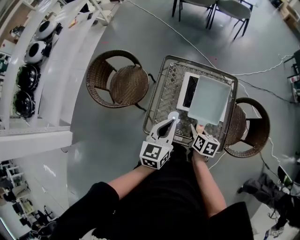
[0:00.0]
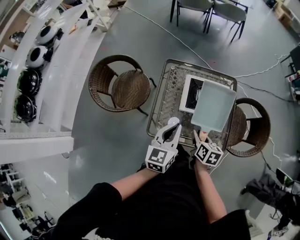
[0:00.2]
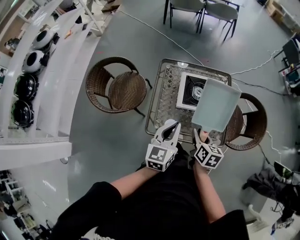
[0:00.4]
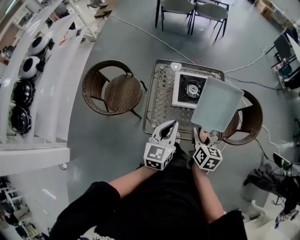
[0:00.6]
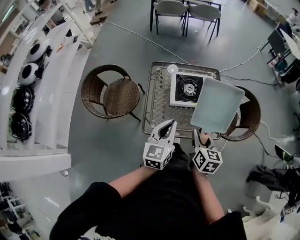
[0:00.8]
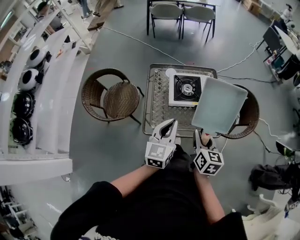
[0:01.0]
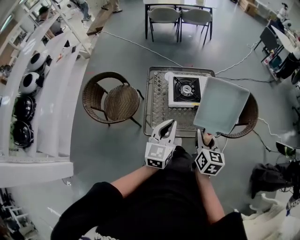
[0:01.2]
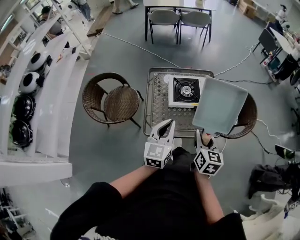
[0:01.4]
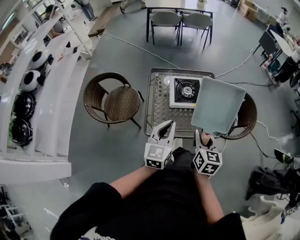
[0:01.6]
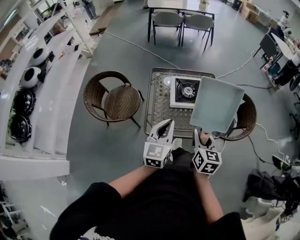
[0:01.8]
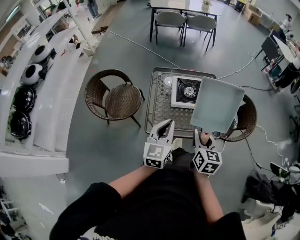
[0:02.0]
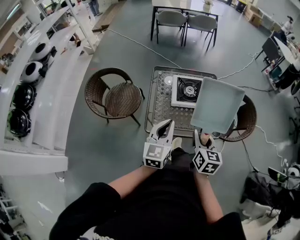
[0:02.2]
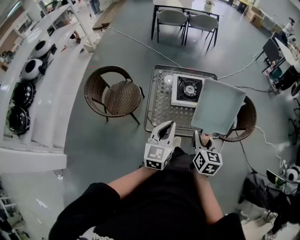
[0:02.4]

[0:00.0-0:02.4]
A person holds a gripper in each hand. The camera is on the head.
0:00.0 to 0:01.2: The left gripper goes roughly 15 cm backward and upward, while the right gripper is displaced upward and backward by some 25 cm, and rotates approximately 30 degrees.
0:01.2 to 0:02.4: There are only small adjustments of the grippers.

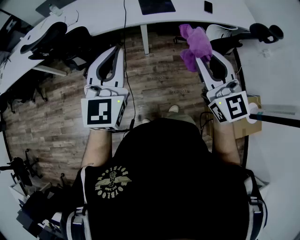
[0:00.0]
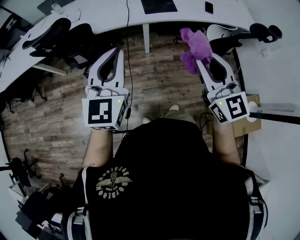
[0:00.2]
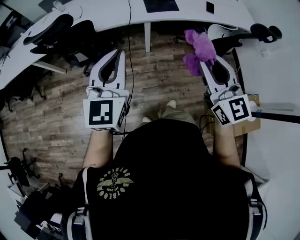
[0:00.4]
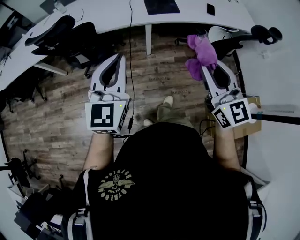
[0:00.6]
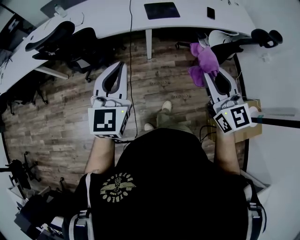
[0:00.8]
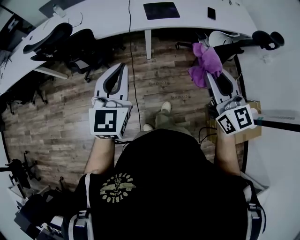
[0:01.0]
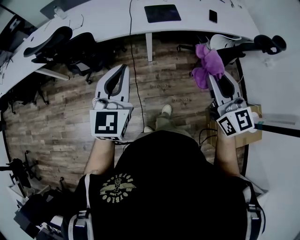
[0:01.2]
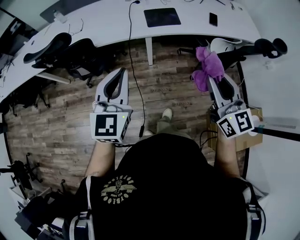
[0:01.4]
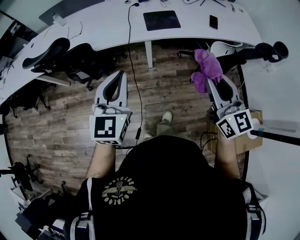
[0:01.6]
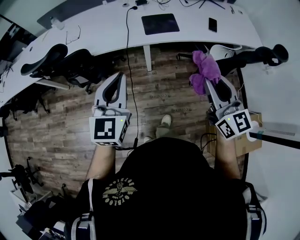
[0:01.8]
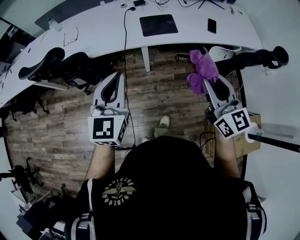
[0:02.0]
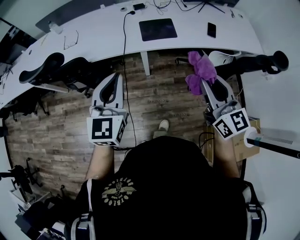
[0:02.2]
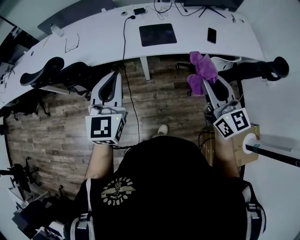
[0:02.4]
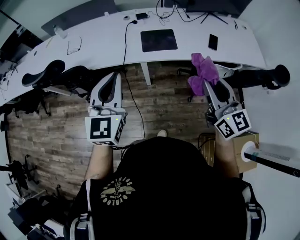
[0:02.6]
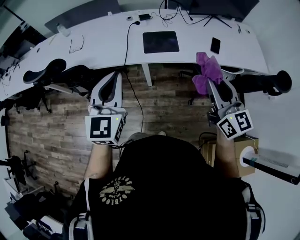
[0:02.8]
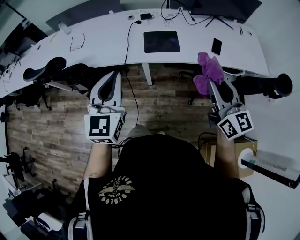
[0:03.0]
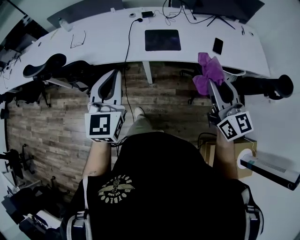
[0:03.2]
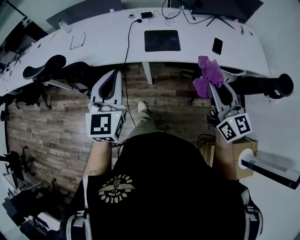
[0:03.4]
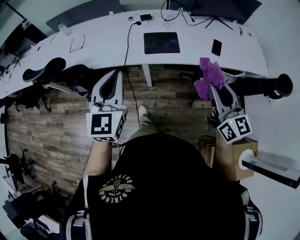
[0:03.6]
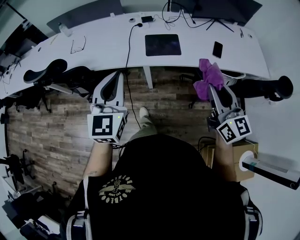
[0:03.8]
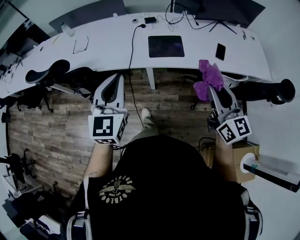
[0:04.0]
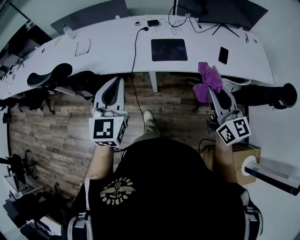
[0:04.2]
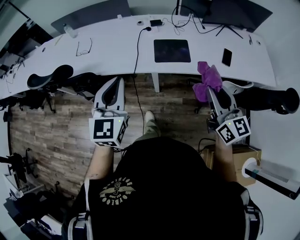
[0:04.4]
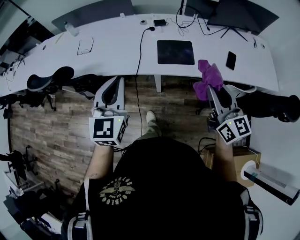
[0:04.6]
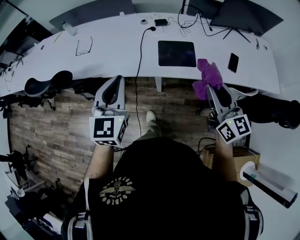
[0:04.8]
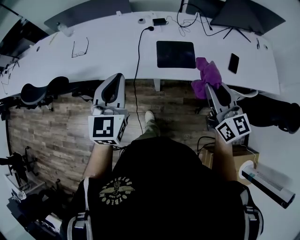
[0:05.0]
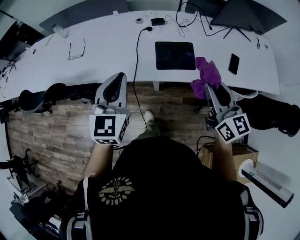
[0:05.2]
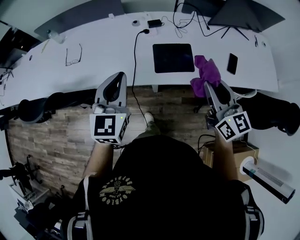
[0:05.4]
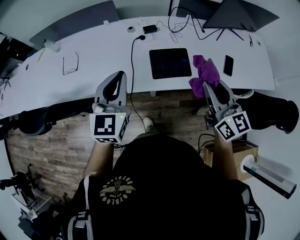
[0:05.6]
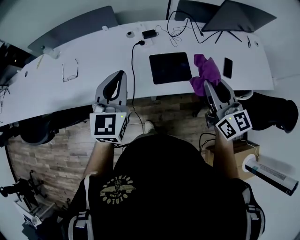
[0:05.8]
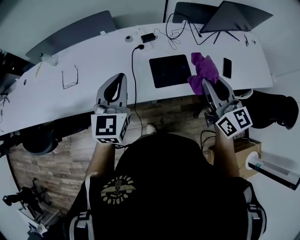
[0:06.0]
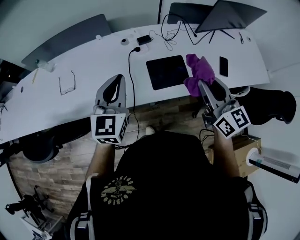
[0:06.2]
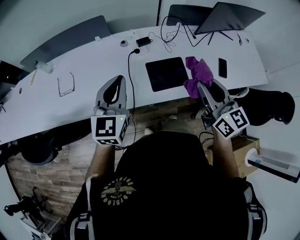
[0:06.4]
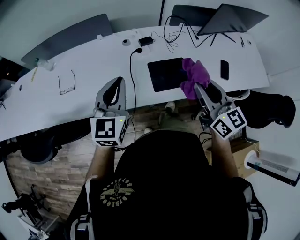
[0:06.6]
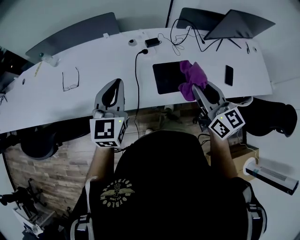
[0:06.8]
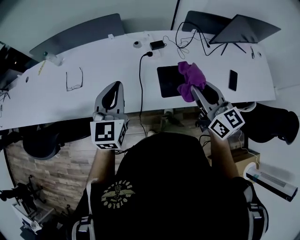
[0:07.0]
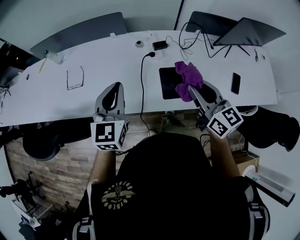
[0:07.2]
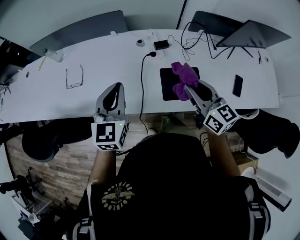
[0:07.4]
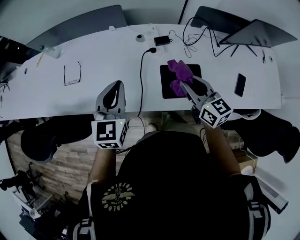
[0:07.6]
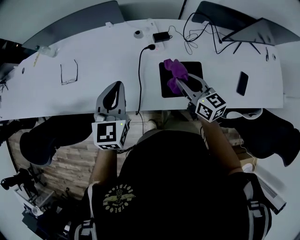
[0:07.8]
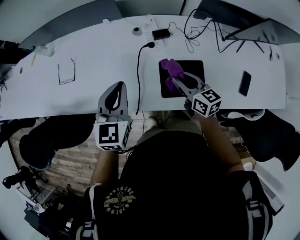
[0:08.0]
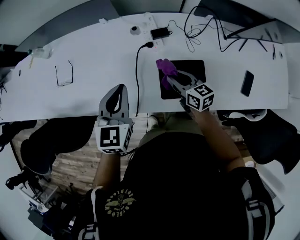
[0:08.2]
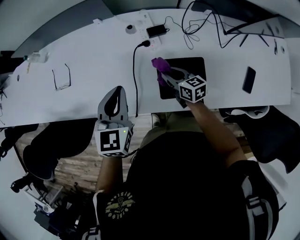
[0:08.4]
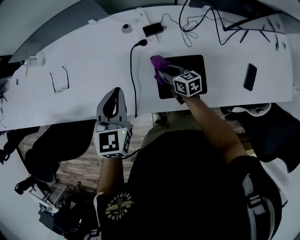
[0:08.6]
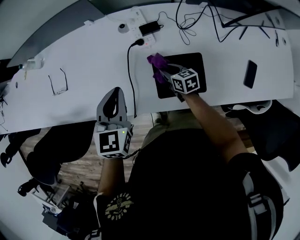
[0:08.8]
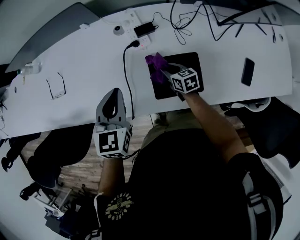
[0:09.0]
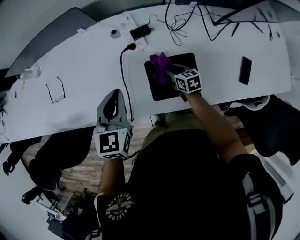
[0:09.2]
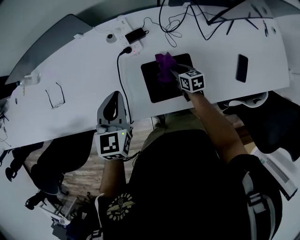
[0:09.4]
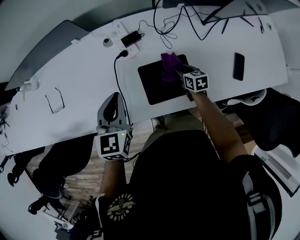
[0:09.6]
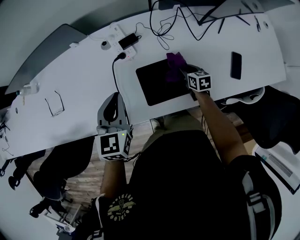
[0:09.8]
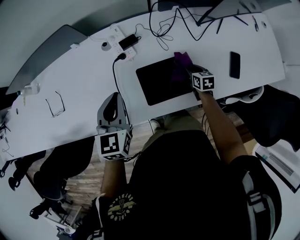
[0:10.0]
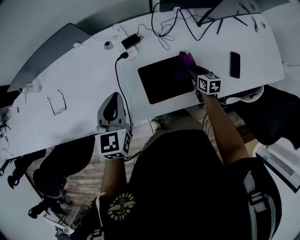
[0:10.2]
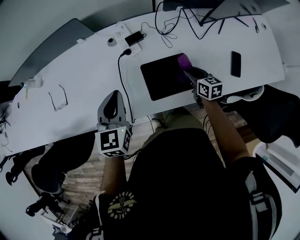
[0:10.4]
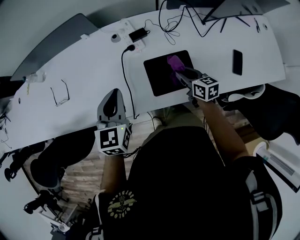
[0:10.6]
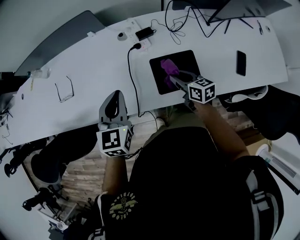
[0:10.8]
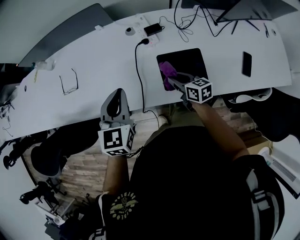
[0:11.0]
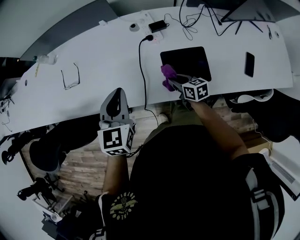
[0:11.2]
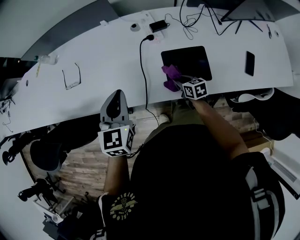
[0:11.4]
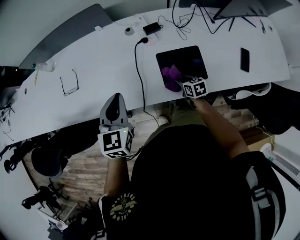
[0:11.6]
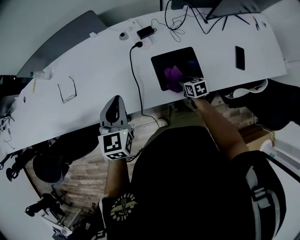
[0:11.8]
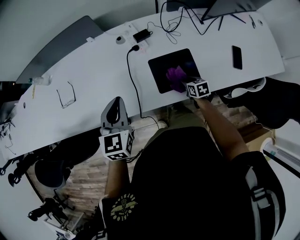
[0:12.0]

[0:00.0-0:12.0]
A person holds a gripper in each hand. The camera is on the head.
0:00.0 to 0:01.6: Both grippers move forward, roughly 5 cm.
0:01.6 to 0:03.0: The grippers both shift forward and to the right by approximately 15 cm.
0:03.0 to 0:04.4: The two grippers go about 5 cm forward.
0:04.4 to 0:06.0: The two grippers go roughly 25 cm forward.
0:06.0 to 0:07.6: The right gripper is displaced forward, downward and to the left by some 20 cm, and rotates some 20 degrees, while the left gripper shifts approximately 10 cm forward and downward.
0:07.6 to 0:09.0: The right gripper goes some 30 cm downward, and rotates about 30 degrees; the left gripper moves downward and to the right, roughly 10 cm.
0:09.0 to 0:10.4: The right gripper is displaced to the right, upward and backward by roughly 15 cm.
0:10.4 to 0:12.0: The right gripper goes approximately 10 cm downward and backward, and travels to the left and back again, about 20 cm each way. The left gripper heads to the left and backward, covering roughly 10 cm.

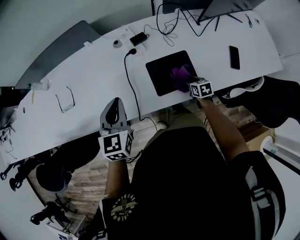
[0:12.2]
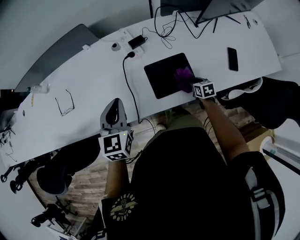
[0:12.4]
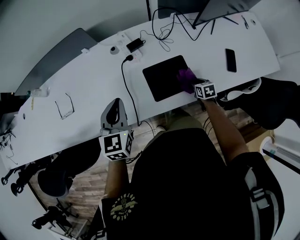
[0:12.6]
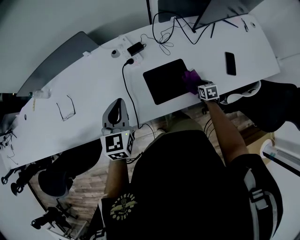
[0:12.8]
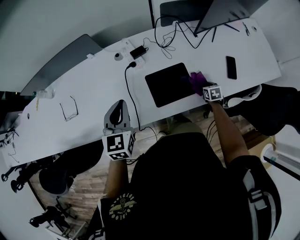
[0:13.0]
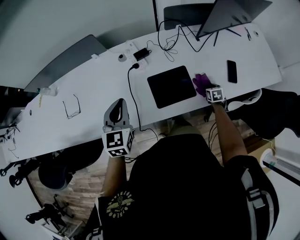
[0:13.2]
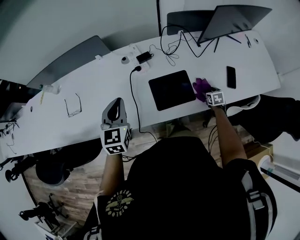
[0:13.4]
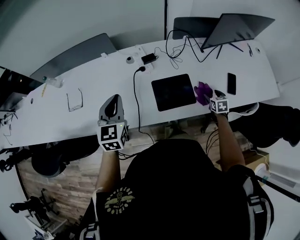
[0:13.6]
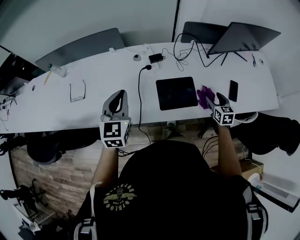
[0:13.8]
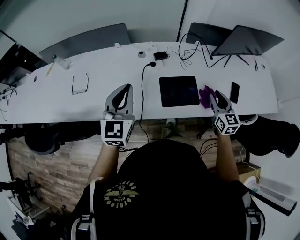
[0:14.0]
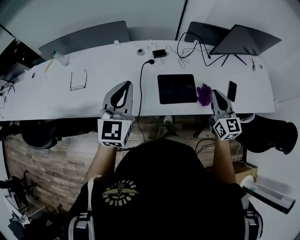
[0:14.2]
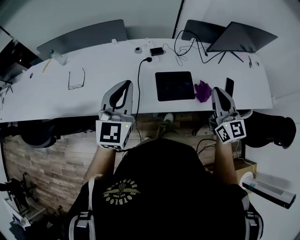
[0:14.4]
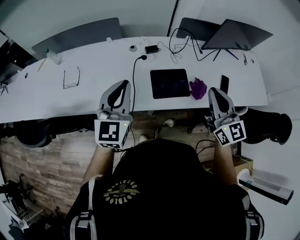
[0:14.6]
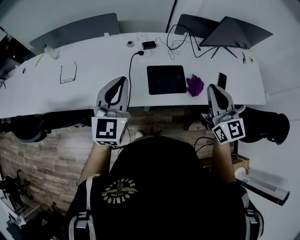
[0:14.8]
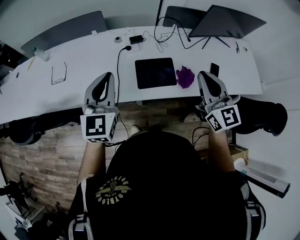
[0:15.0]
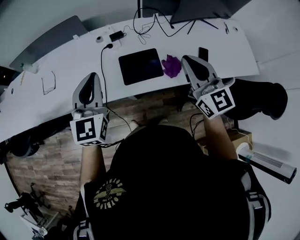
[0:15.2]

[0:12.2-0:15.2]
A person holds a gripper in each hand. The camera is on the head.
0:12.2 to 0:13.8: The left gripper is displaced upward by some 5 cm, while the right gripper travels upward and to the right by approximately 20 cm, turns by roughly 20 degrees, and opens up.
0:13.8 to 0:15.2: The right gripper moves upward, about 30 cm, tilts its fingers about 30 degrees upward, and closes. Meanwhile the left gripper goes some 15 cm to the right, upward and backward.

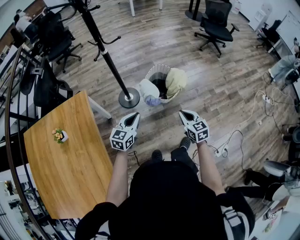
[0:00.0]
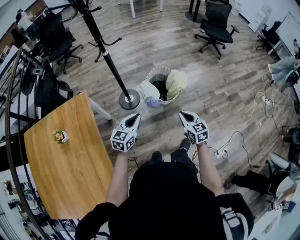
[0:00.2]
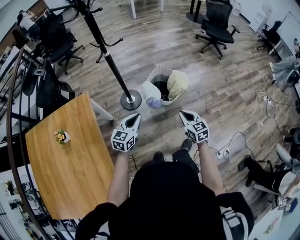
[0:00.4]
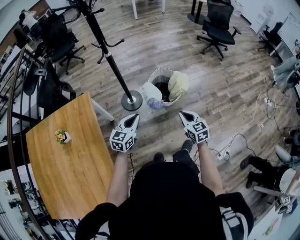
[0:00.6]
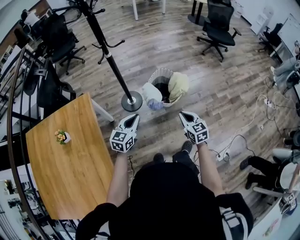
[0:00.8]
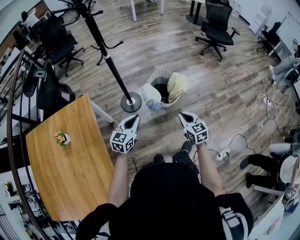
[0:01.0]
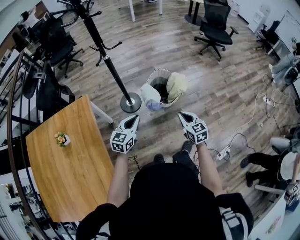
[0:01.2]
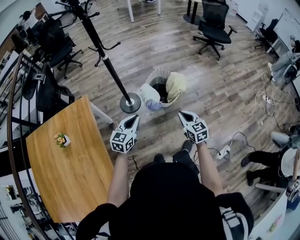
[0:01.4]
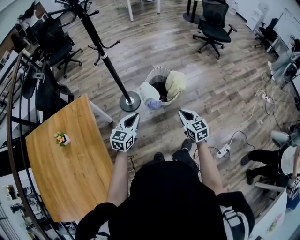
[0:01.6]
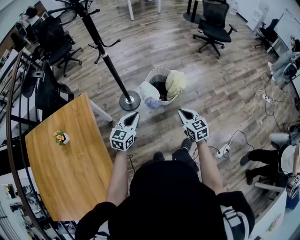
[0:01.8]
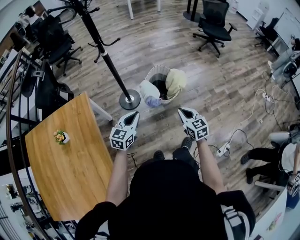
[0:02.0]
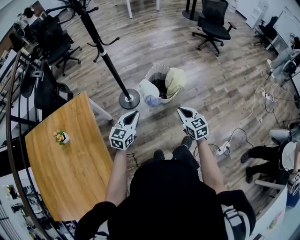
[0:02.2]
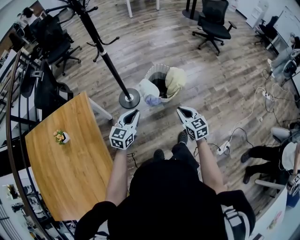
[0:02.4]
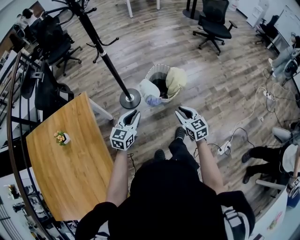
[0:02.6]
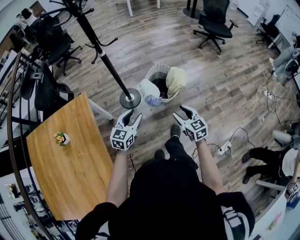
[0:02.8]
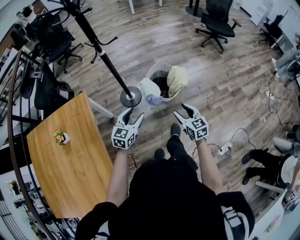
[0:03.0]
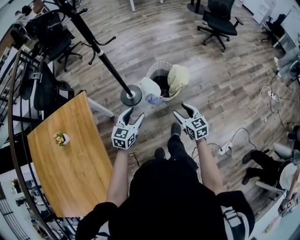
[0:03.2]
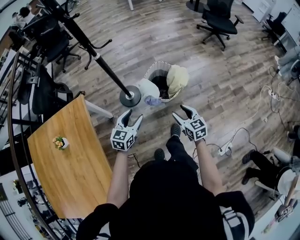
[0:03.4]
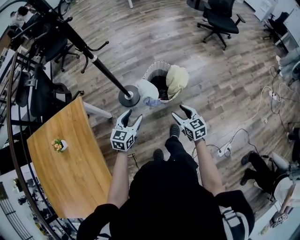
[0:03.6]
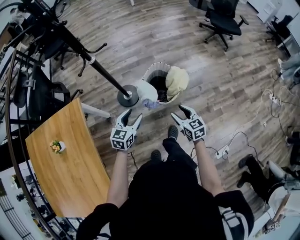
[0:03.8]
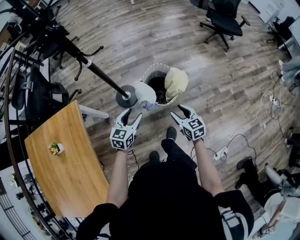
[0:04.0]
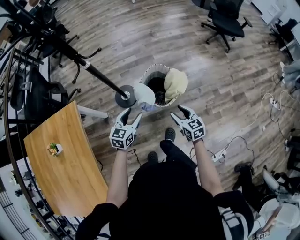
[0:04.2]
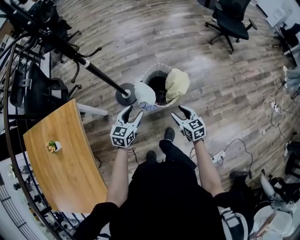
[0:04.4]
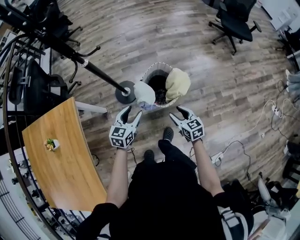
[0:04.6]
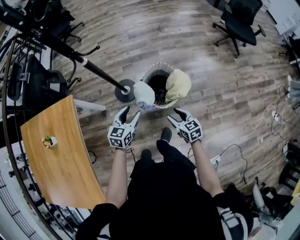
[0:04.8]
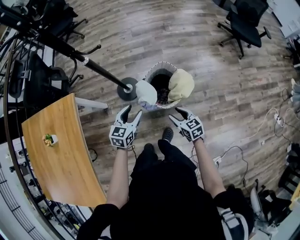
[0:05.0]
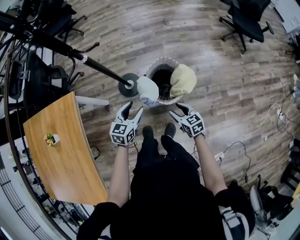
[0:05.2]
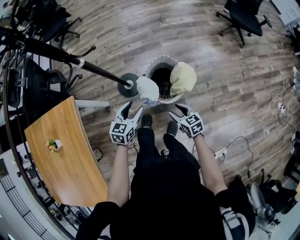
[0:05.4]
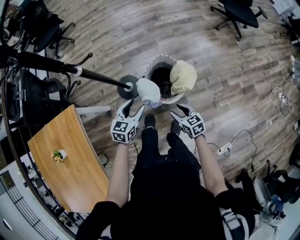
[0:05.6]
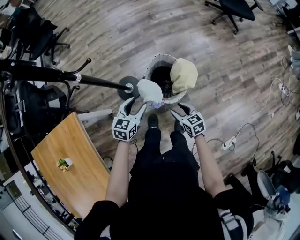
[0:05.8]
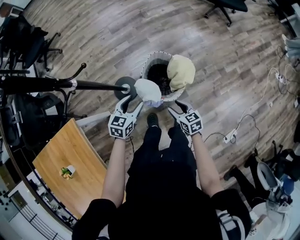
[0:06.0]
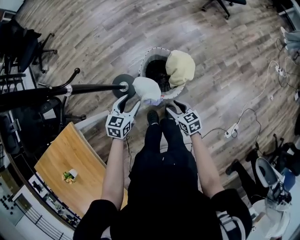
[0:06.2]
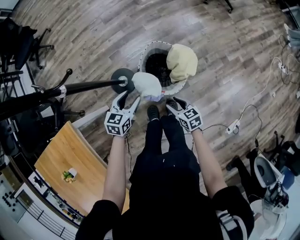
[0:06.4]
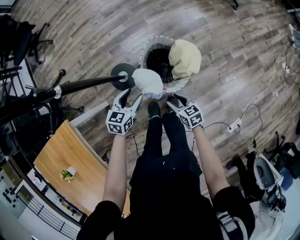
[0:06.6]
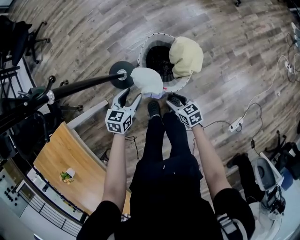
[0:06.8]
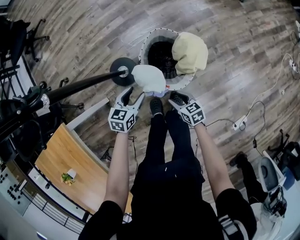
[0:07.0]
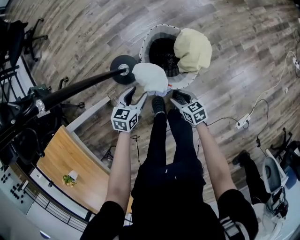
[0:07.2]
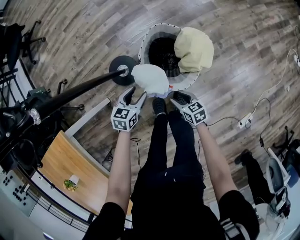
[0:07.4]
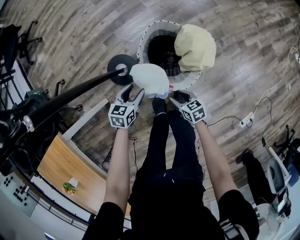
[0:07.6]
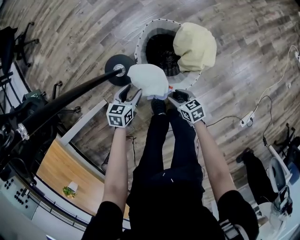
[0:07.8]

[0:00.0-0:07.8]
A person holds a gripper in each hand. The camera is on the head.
0:00.0 to 0:01.6: The grippers make only small movements.
0:01.6 to 0:03.2: The right gripper opens its fingers, while the left gripper opens its fingers.
0:03.2 to 0:04.6: The right gripper moves forward, to the right and downward, about 15 cm, while the left gripper goes approximately 15 cm forward and to the right.
0:04.6 to 0:06.2: The left gripper is displaced forward and downward by roughly 15 cm, and swivels some 20 degrees, while the right gripper goes approximately 15 cm downward, to the left and forward.
0:06.2 to 0:07.8: Both grippers travel together downward, roughly 25 cm.
